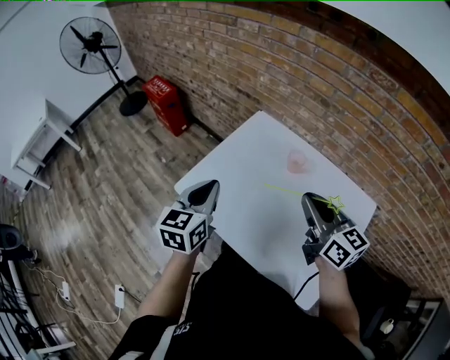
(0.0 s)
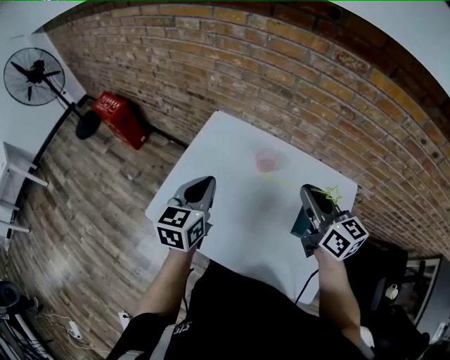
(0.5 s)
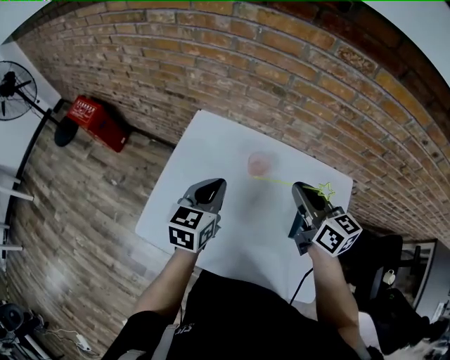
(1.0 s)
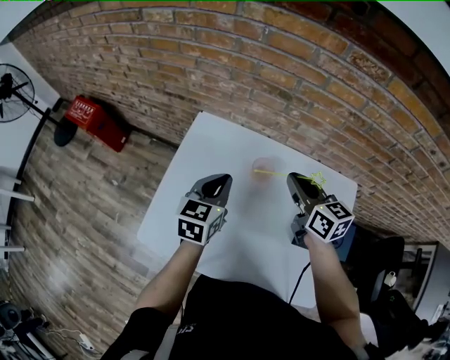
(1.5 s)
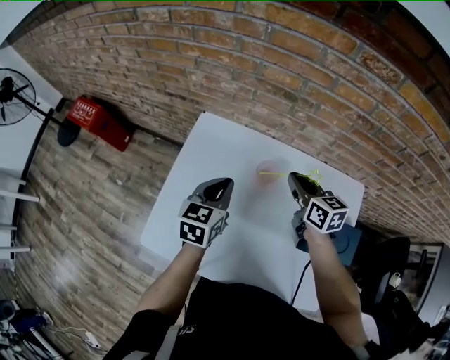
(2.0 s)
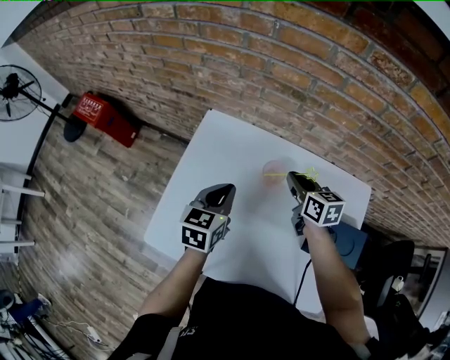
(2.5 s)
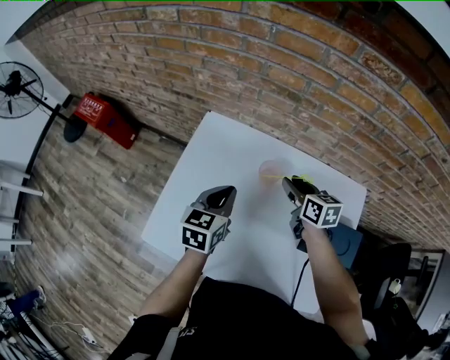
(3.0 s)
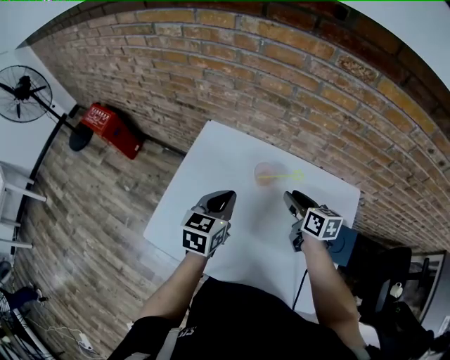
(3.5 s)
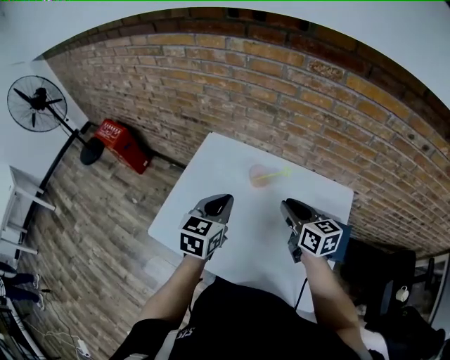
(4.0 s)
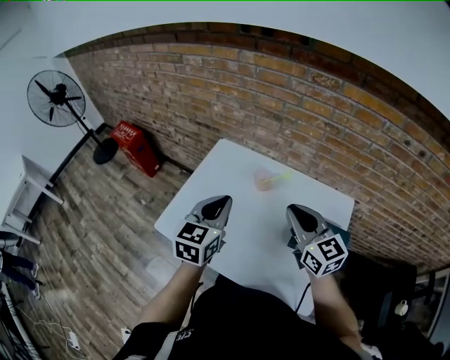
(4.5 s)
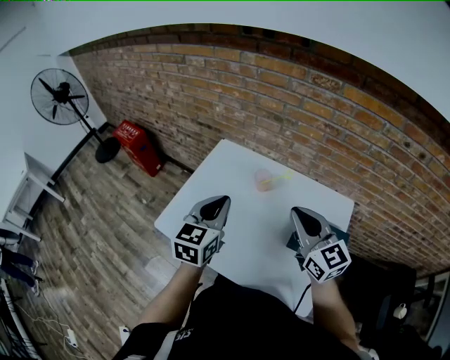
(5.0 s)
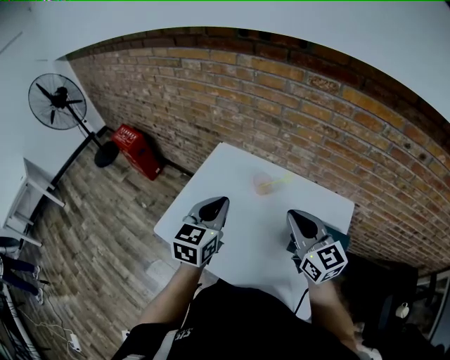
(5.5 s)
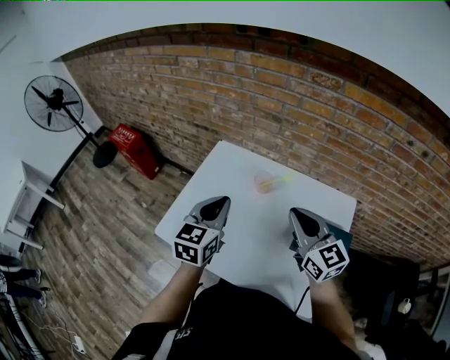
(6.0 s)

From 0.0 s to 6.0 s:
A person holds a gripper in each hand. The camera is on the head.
From 0.0 s to 2.0 s: The left gripper goes some 30 cm forward, downward and to the right, and changes its angle by about 30 degrees. Meanwhile the right gripper is displaced forward and downward by about 30 cm, and rotates roughly 30 degrees.
From 2.0 s to 4.0 s: Both grippers travel together backward and upward, about 15 cm.
From 4.0 s to 6.0 s: The right gripper travels upward and backward by some 10 cm, and swivels some 30 degrees. The left gripper moves upward, some 5 cm.

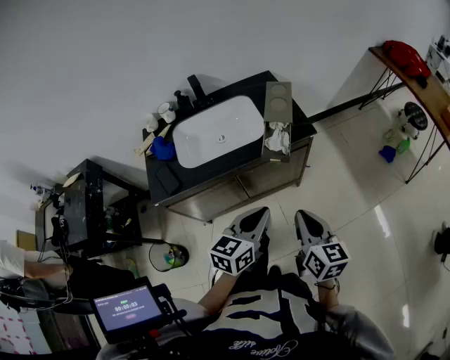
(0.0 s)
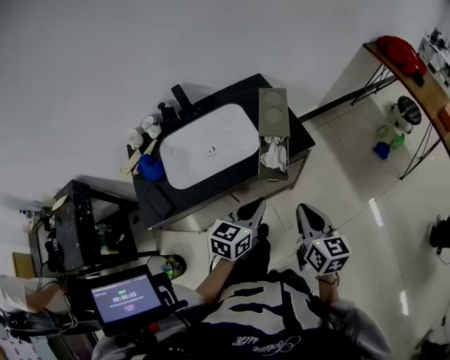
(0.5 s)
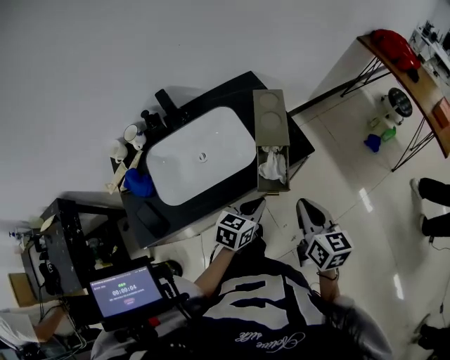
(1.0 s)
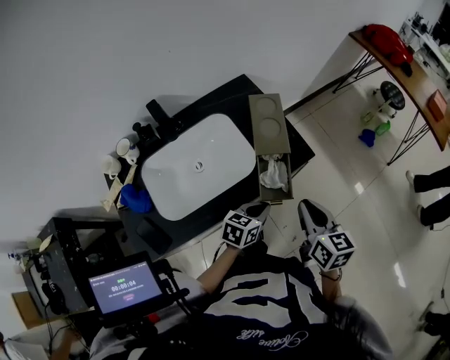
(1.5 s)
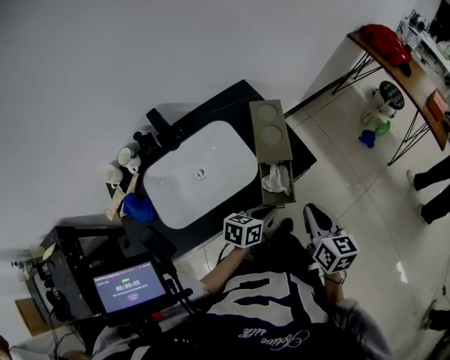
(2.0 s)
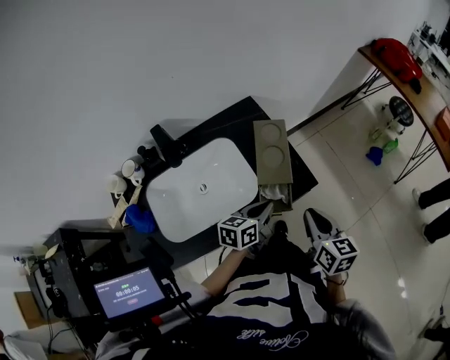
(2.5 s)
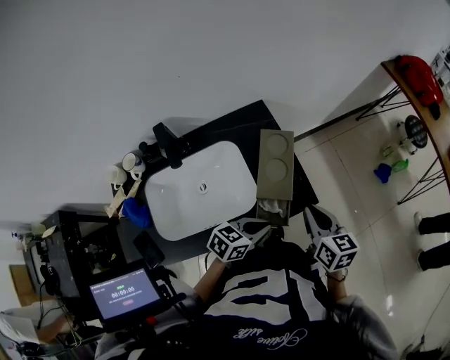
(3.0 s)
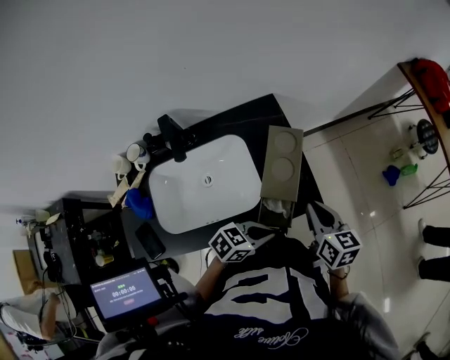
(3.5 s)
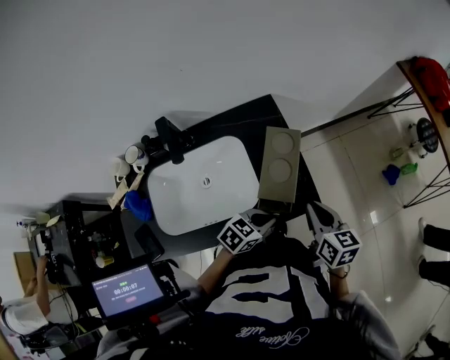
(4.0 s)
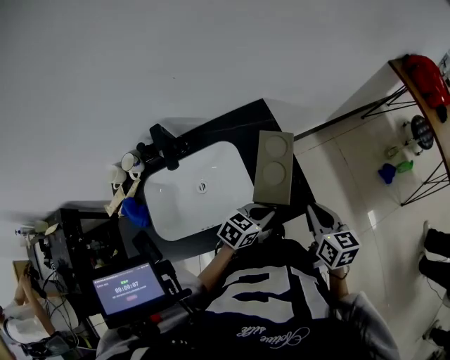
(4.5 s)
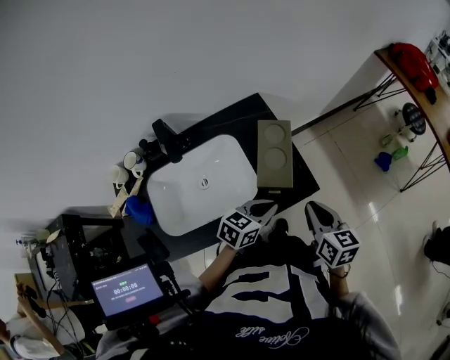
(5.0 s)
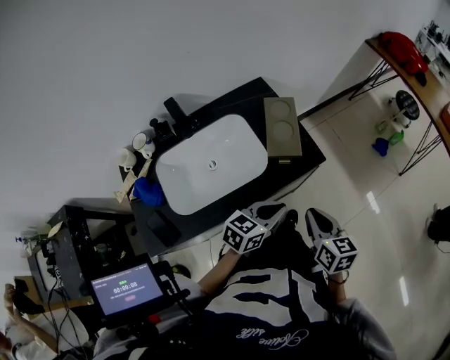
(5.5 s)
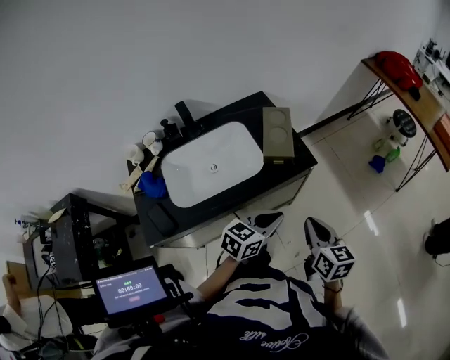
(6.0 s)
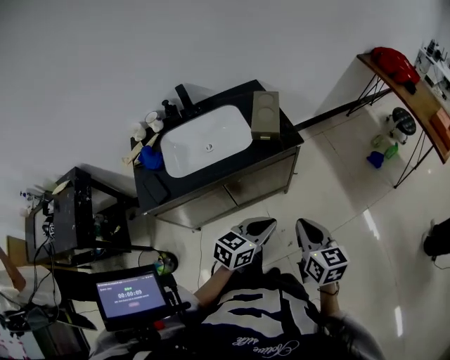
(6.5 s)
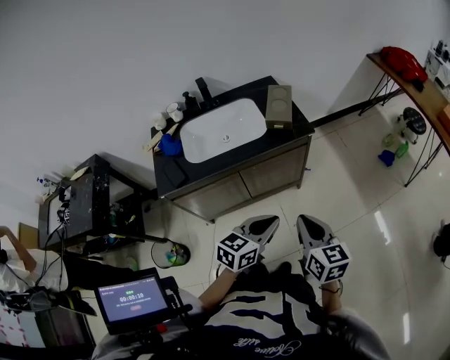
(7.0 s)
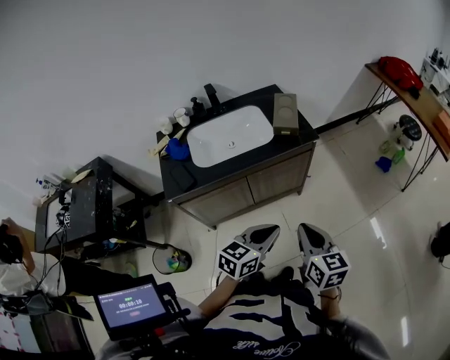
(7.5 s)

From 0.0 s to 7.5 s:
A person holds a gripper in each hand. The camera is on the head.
From 0.0 s to 2.0 s: The right gripper is displaced forward by about 20 cm; the left gripper travels forward and downward by about 25 cm, and swivels some 30 degrees.
From 2.0 s to 4.0 s: The left gripper goes approximately 10 cm forward, and rotates roughly 20 degrees. Meanwhile the right gripper shifts some 15 cm forward.
From 4.0 s to 5.5 s: The right gripper is displaced backward by roughly 20 cm; the left gripper shifts some 15 cm backward and upward.
From 5.5 s to 7.5 s: The grippers both shift backward by roughly 30 cm.

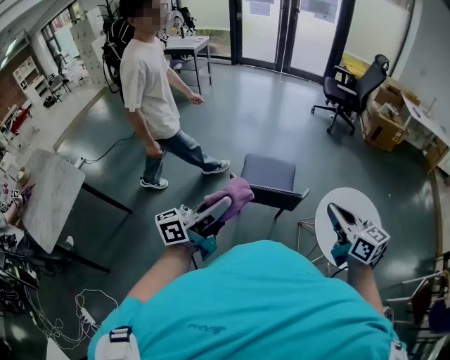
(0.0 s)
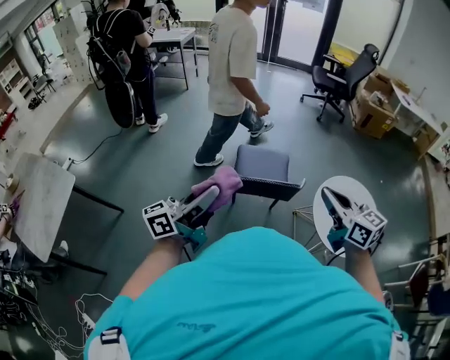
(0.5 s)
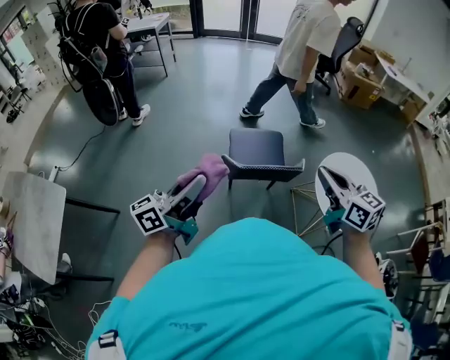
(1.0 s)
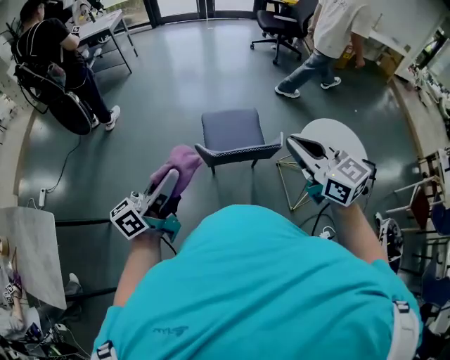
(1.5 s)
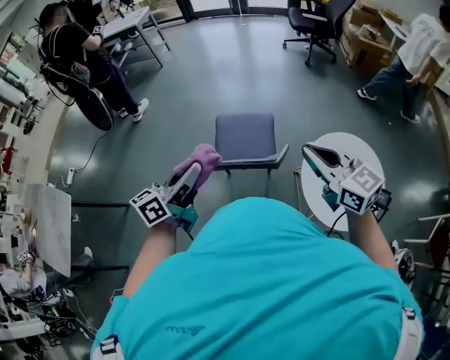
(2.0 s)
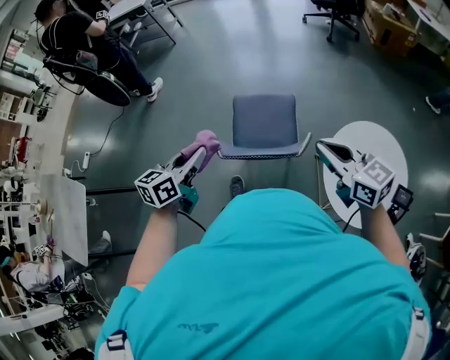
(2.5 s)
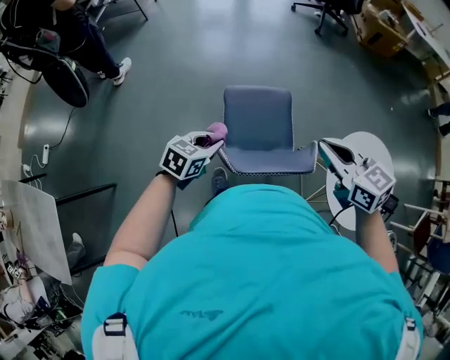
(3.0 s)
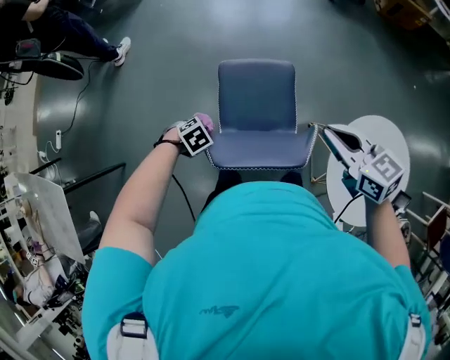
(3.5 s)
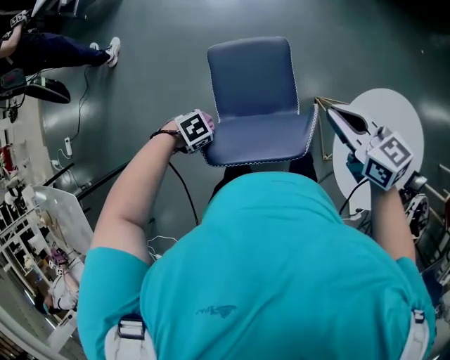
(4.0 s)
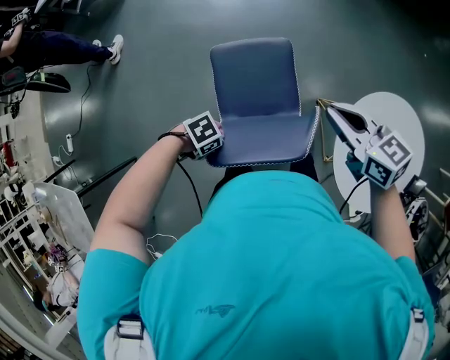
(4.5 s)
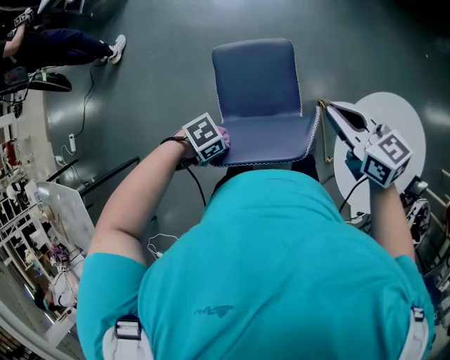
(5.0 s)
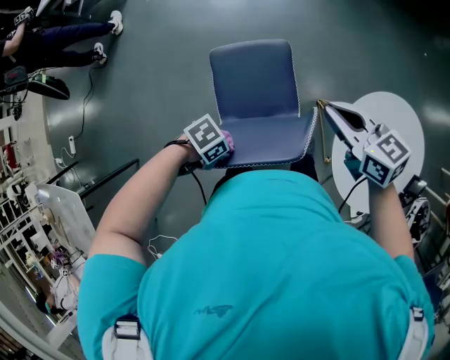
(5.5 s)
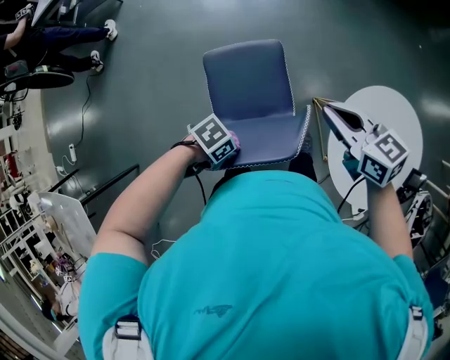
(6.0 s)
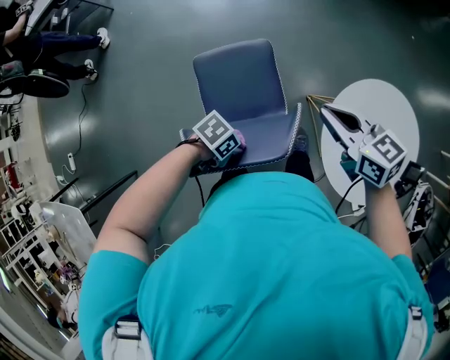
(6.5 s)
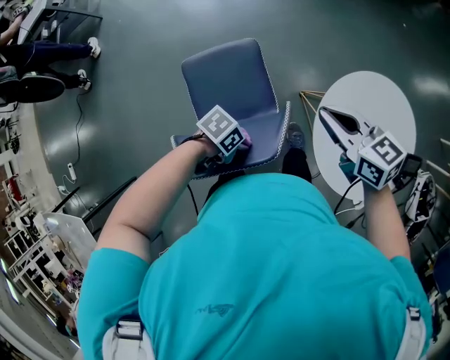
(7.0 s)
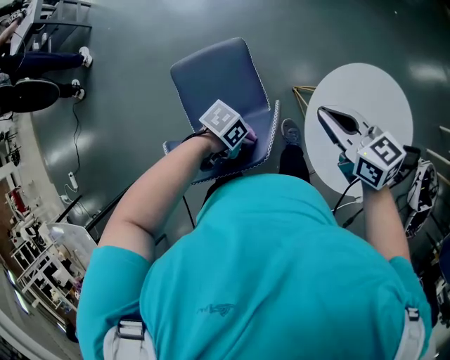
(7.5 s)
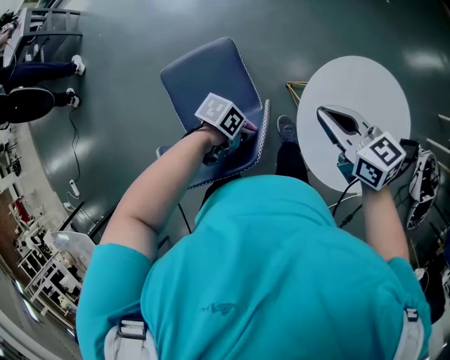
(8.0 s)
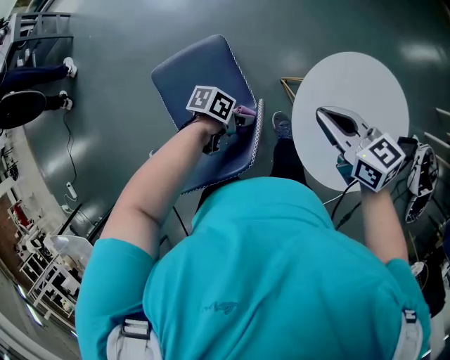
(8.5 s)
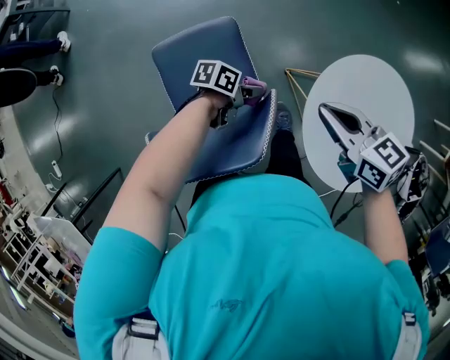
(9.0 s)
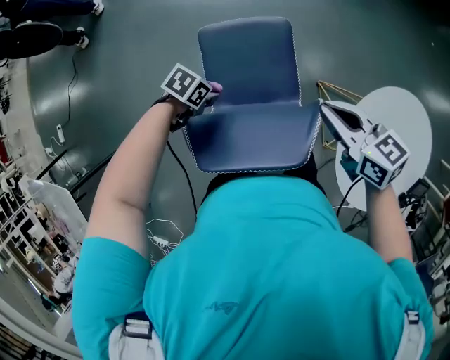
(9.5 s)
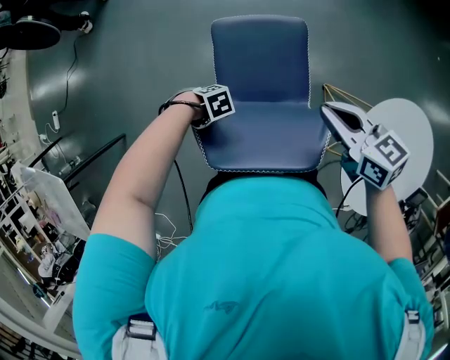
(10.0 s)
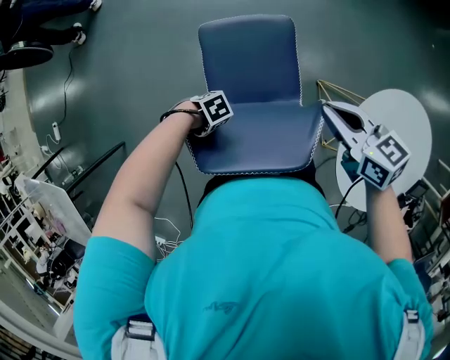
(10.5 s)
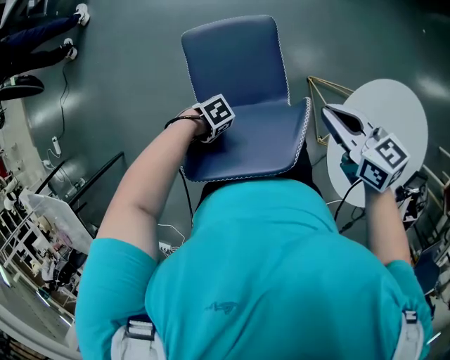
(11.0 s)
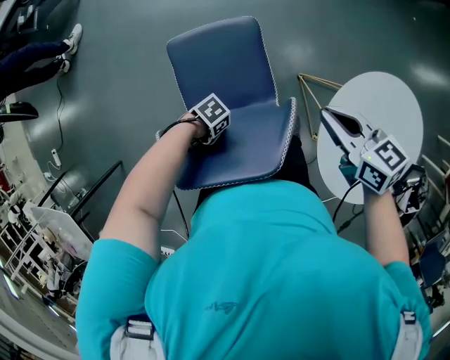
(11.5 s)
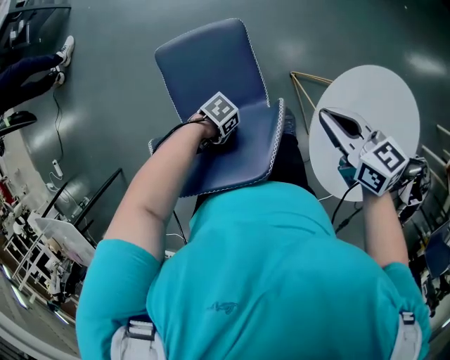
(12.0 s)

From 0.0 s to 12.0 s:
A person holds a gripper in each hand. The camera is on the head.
From 0.0 s to 2.0 s: The right gripper shifts by some 15 cm.
From 2.0 s to 4.0 s: The right gripper goes approximately 20 cm downward, and turns by roughly 20 degrees.
From 6.0 s to 8.0 s: The right gripper shifts by roughly 15 cm.
From 8.0 s to 10.0 s: The right gripper changes place by approximately 20 cm, and changes its angle by some 20 degrees.
From 10.0 s to 12.0 s: The right gripper changes place by some 15 cm.

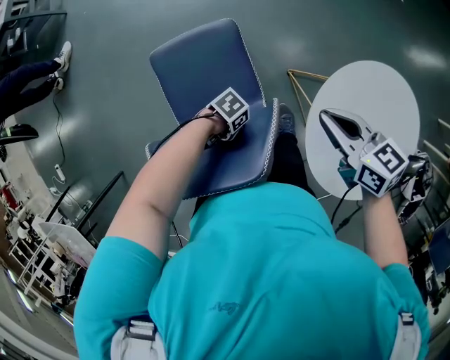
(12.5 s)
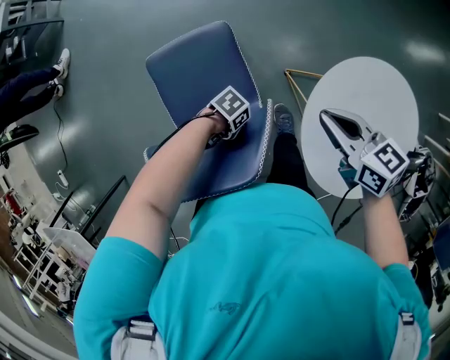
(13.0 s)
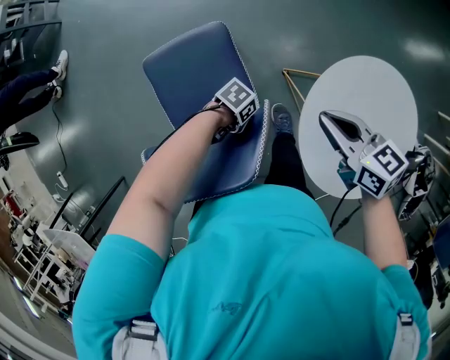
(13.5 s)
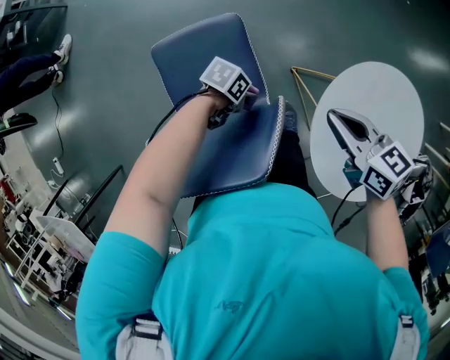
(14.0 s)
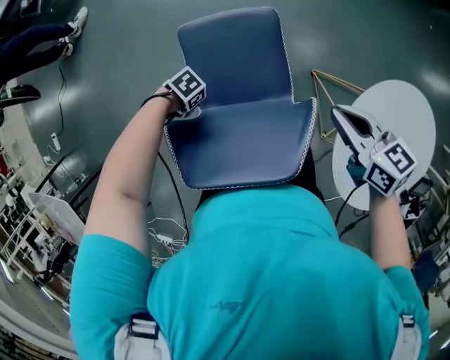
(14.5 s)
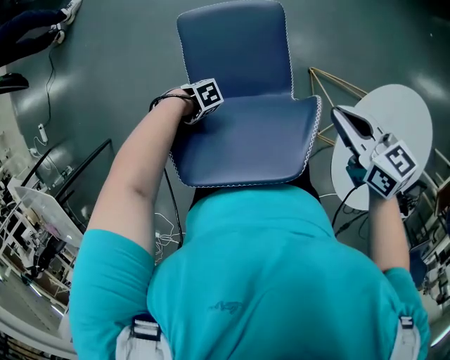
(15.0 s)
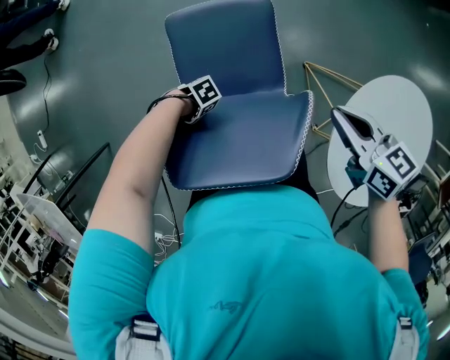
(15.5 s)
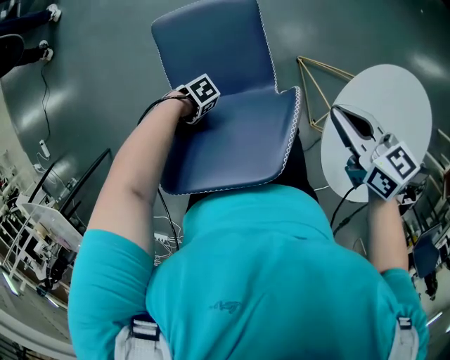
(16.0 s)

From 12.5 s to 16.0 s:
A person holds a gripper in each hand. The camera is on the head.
From 12.5 s to 14.5 s: The right gripper changes place by some 10 cm.
